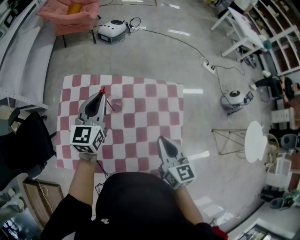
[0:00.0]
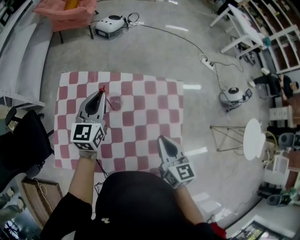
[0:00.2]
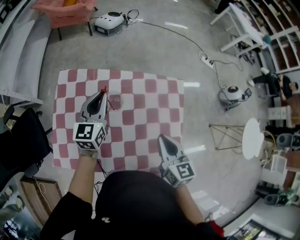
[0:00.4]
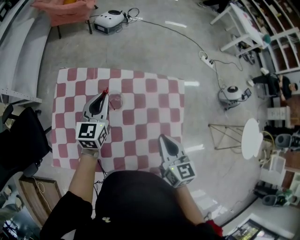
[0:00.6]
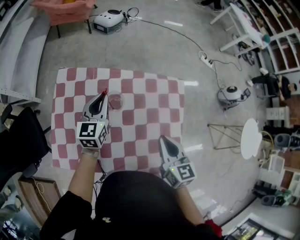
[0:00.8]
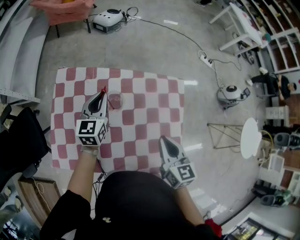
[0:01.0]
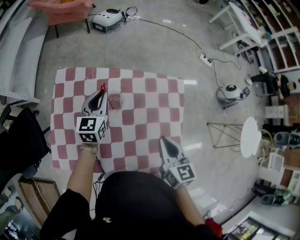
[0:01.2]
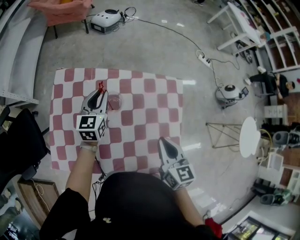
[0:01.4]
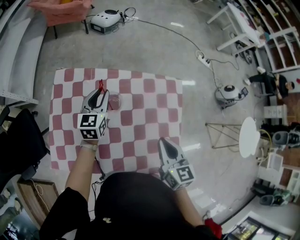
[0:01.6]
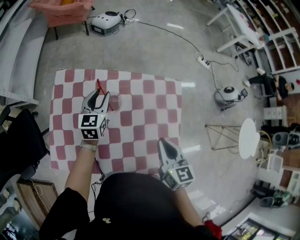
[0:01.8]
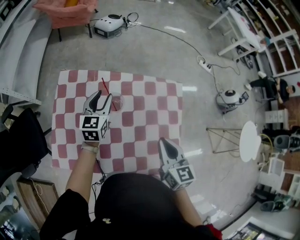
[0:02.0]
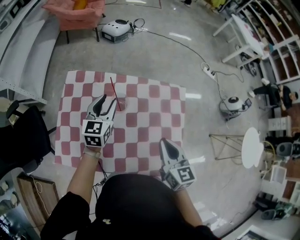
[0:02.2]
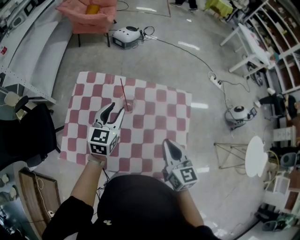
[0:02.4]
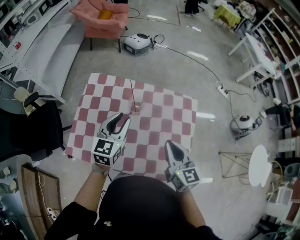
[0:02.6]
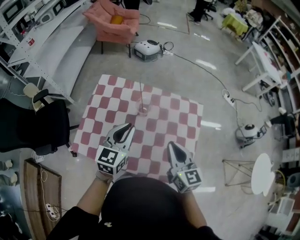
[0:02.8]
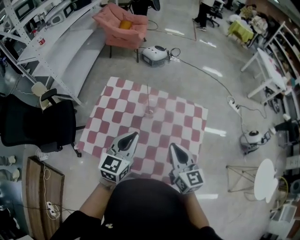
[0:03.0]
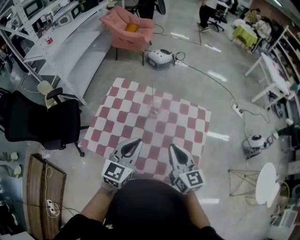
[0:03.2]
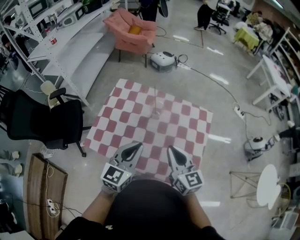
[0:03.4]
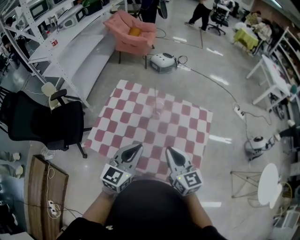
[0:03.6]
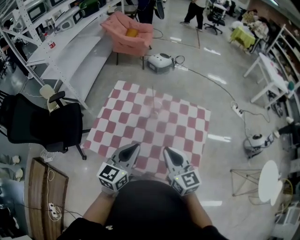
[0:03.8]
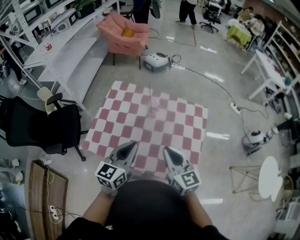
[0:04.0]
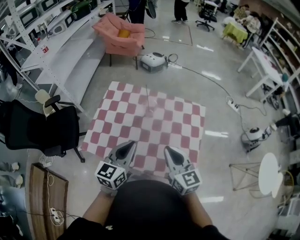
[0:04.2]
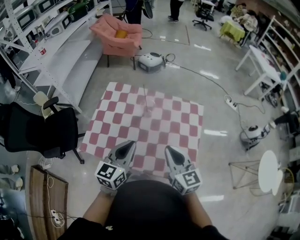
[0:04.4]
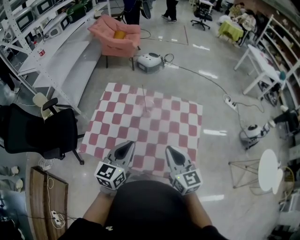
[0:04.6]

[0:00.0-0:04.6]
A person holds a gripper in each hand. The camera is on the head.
0.0 to 1.6 s: The left gripper goes some 15 cm downward.
1.6 to 3.0 s: The right gripper heads upward, backward and to the left, covering roughly 10 cm, and rotates about 30 degrees. Meanwhile the left gripper moves backward and upward, approximately 30 cm.
3.0 to 4.6 s: The two grippers go some 5 cm backward.

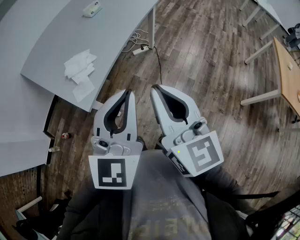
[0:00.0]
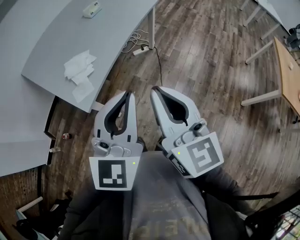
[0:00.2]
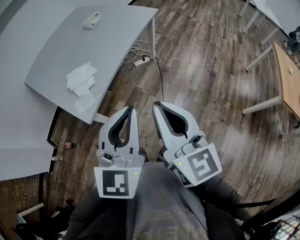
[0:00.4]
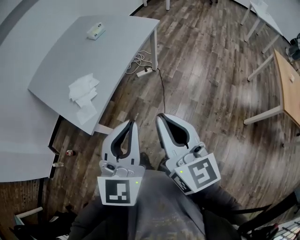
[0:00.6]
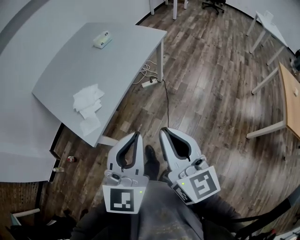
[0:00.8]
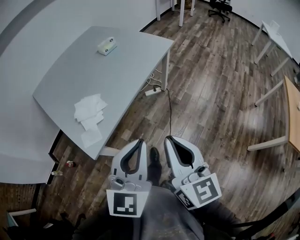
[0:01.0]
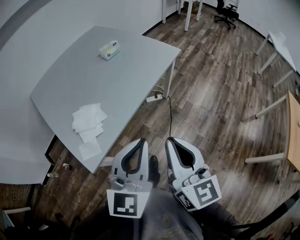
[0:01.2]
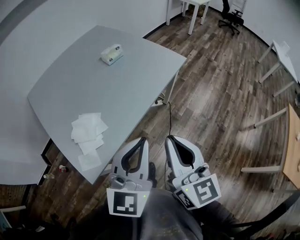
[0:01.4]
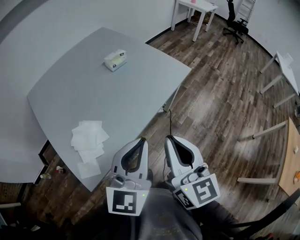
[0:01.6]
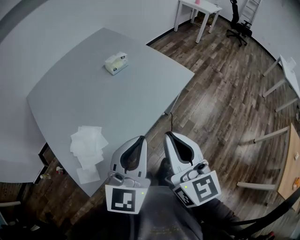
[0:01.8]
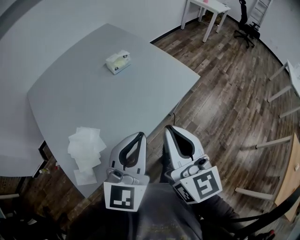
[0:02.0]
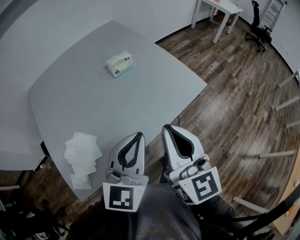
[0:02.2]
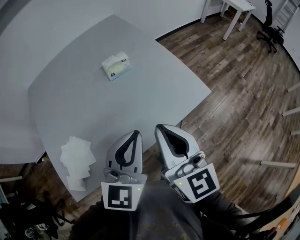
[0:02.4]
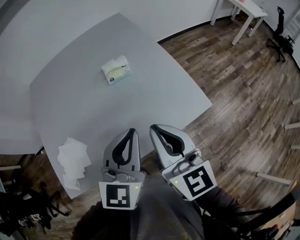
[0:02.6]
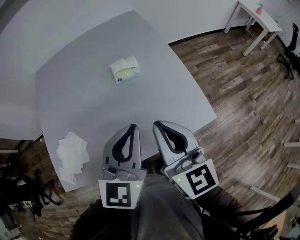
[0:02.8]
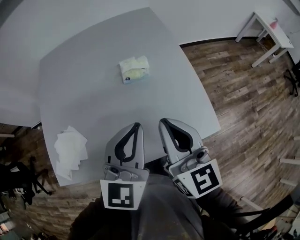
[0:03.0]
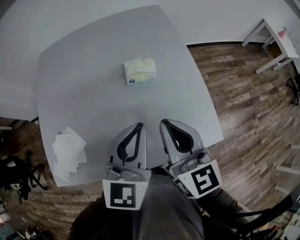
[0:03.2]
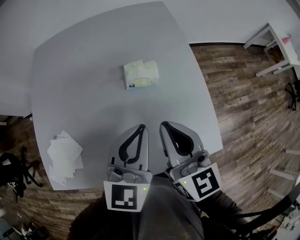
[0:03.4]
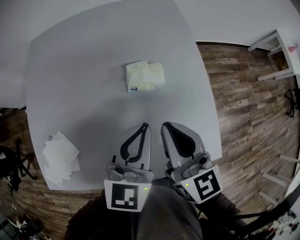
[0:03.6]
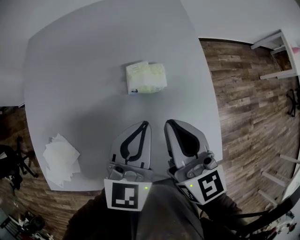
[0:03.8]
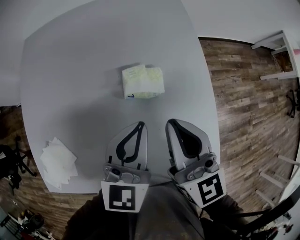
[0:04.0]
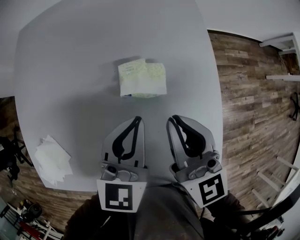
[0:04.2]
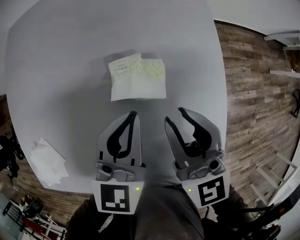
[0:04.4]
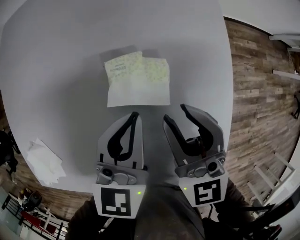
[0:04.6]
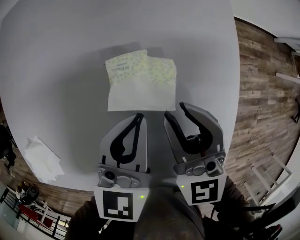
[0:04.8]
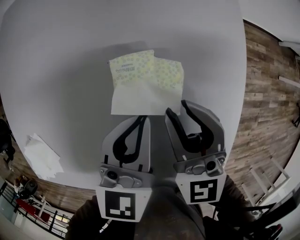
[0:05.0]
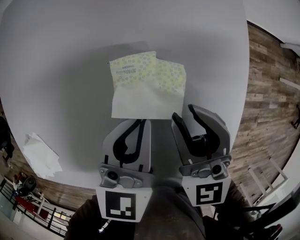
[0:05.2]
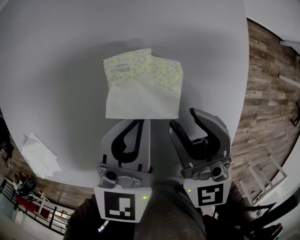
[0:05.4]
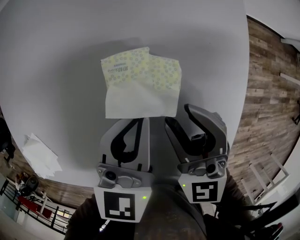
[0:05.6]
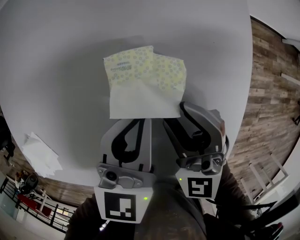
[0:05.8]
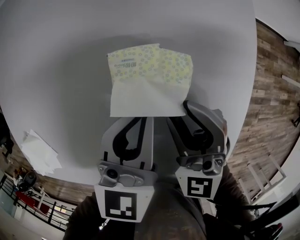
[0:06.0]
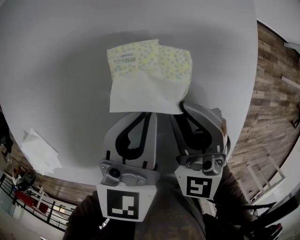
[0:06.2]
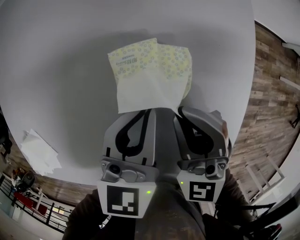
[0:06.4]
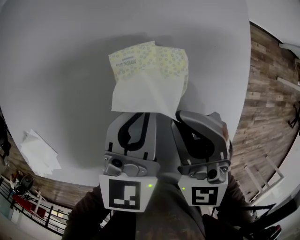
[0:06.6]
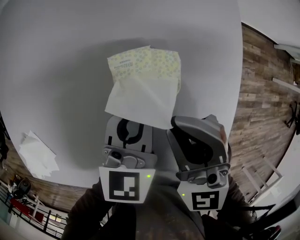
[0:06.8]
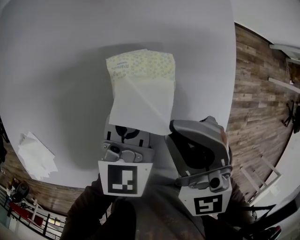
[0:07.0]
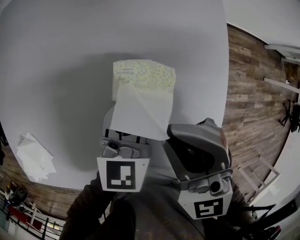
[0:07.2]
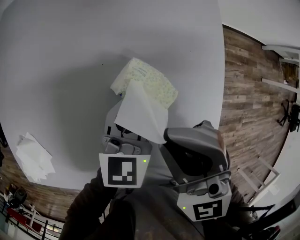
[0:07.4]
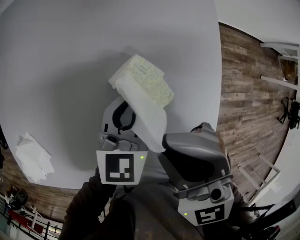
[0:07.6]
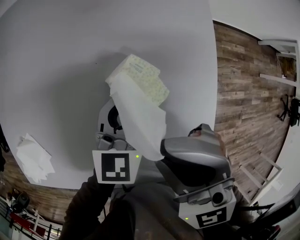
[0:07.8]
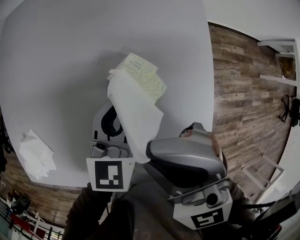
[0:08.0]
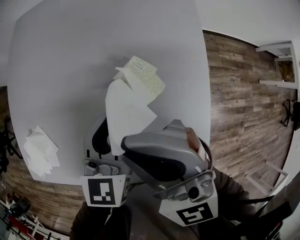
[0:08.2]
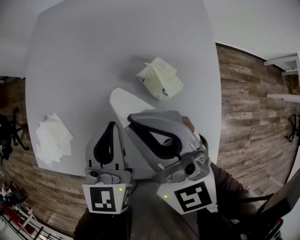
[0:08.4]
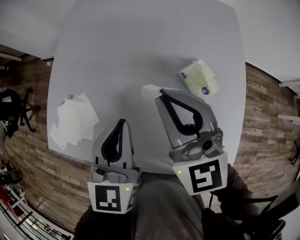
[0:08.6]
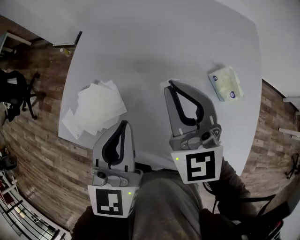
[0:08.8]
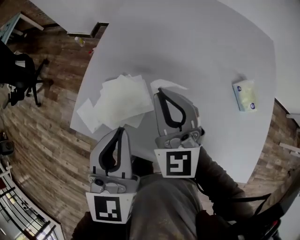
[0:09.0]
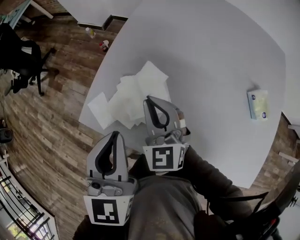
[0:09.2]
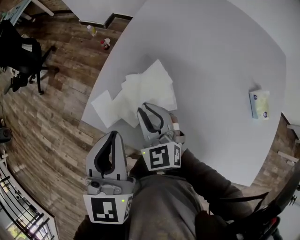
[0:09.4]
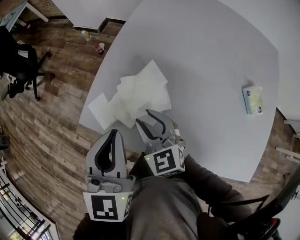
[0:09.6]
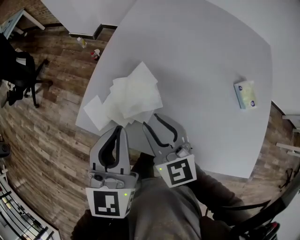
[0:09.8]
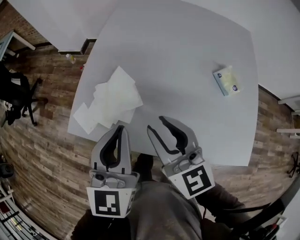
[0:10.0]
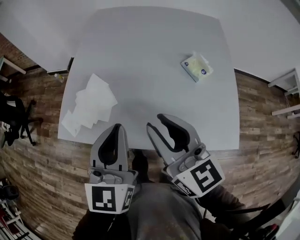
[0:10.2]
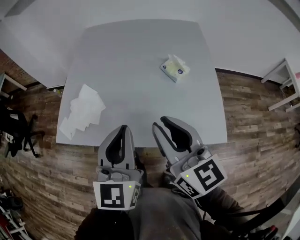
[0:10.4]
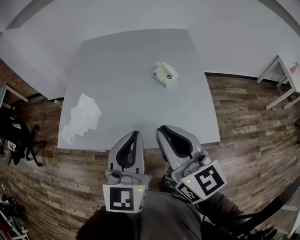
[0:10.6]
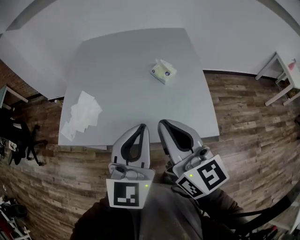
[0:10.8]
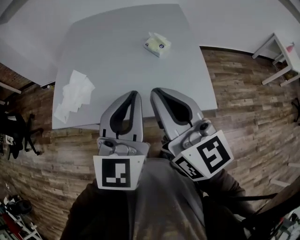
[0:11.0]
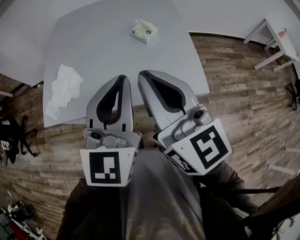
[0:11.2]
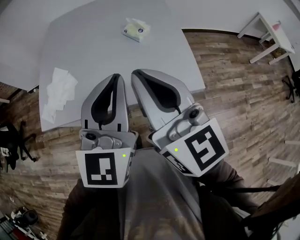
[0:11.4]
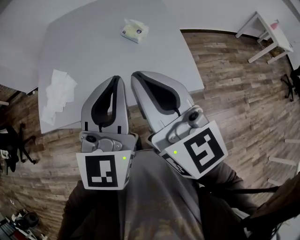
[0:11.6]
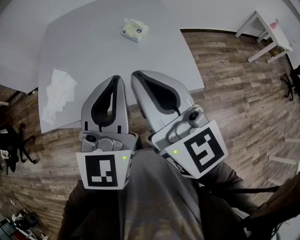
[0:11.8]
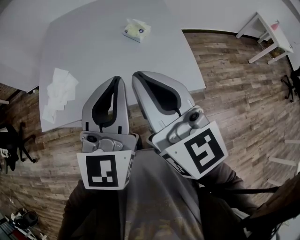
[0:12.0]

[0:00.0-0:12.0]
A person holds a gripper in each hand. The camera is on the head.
0.0 to 1.6 s: The two grippers go about 35 cm forward.
1.6 to 3.0 s: The left gripper shifts by approximately 35 cm, and swivels roughly 30 degrees. The right gripper moves approximately 40 cm, and swivels about 40 degrees.
3.0 to 4.4 s: Both grippers travel together forward and downward, some 30 cm. The left gripper turns by approximately 20 degrees.
4.4 to 6.0 s: The right gripper is displaced downward by approximately 10 cm, and turns by approximately 30 degrees, while the left gripper shifts about 5 cm downward.
6.0 to 7.6 s: The right gripper is displaced upward by about 15 cm, and closes.
7.6 to 9.0 s: Both grippers are carried to the left, approximately 50 cm. The left gripper rotates some 30 degrees.
9.0 to 10.4 s: Both grippers move backward, to the right and upward, approximately 30 cm. The right gripper turns by about 30 degrees, and opens its fingers.
10.4 to 12.0 s: The left gripper goes about 15 cm to the right, backward and upward; the right gripper heads backward and upward, covering about 10 cm, and closes its fingers.

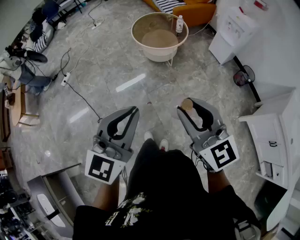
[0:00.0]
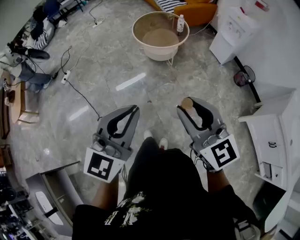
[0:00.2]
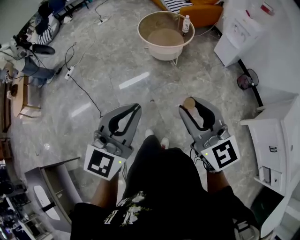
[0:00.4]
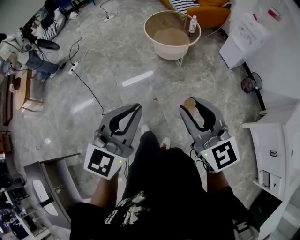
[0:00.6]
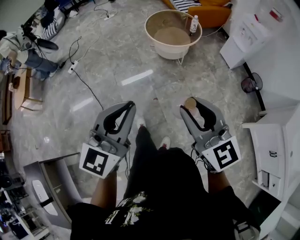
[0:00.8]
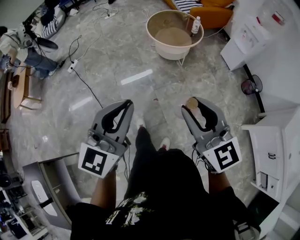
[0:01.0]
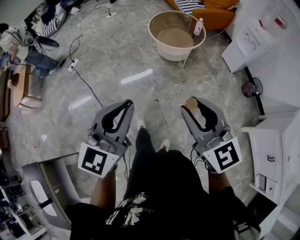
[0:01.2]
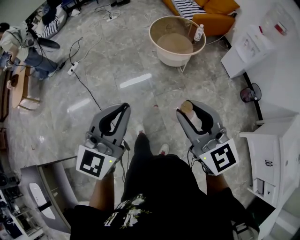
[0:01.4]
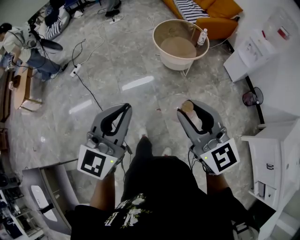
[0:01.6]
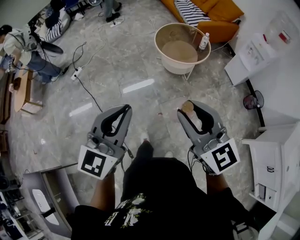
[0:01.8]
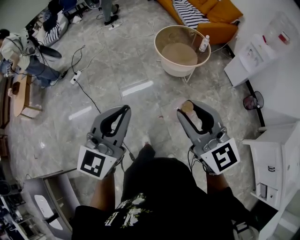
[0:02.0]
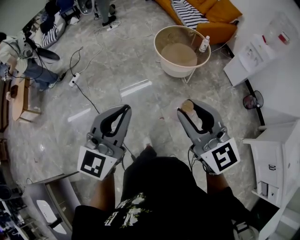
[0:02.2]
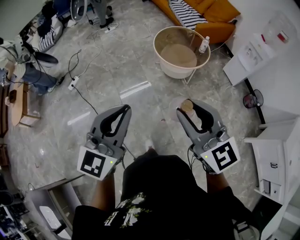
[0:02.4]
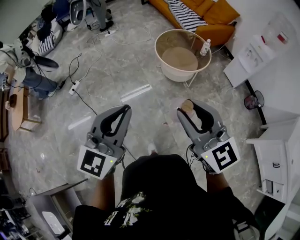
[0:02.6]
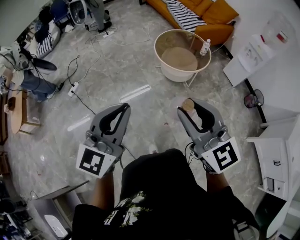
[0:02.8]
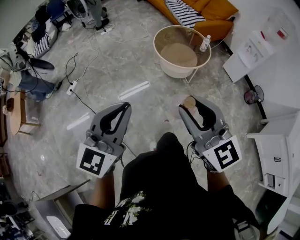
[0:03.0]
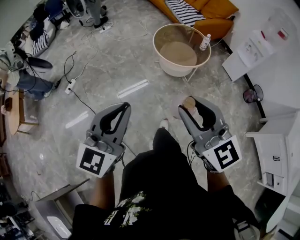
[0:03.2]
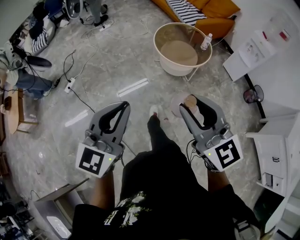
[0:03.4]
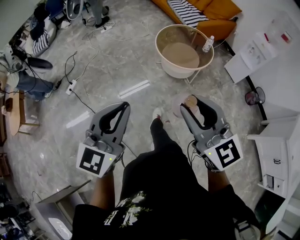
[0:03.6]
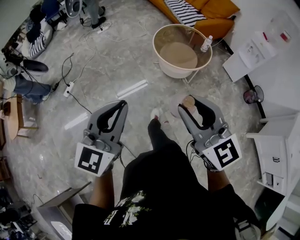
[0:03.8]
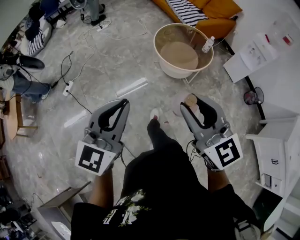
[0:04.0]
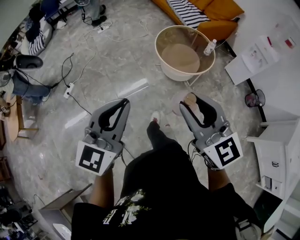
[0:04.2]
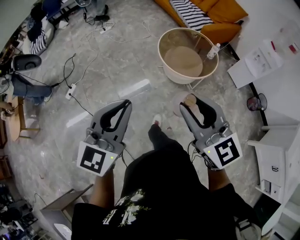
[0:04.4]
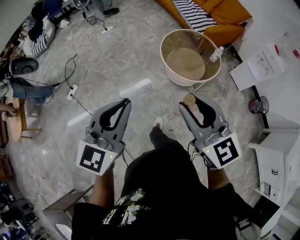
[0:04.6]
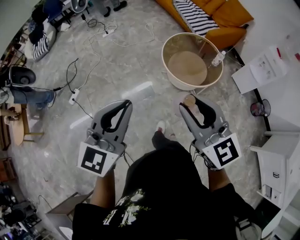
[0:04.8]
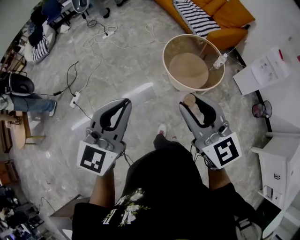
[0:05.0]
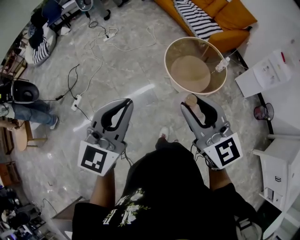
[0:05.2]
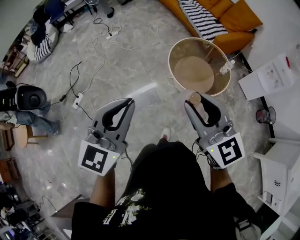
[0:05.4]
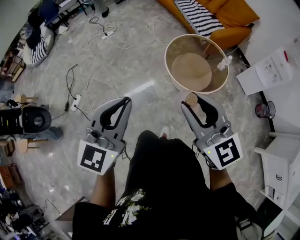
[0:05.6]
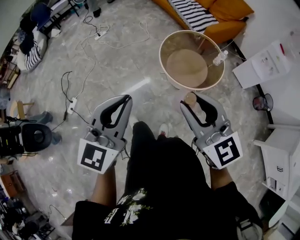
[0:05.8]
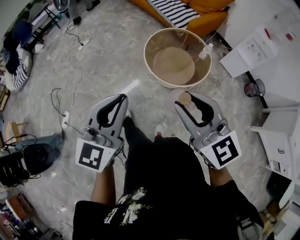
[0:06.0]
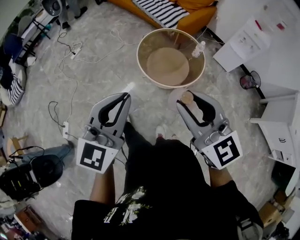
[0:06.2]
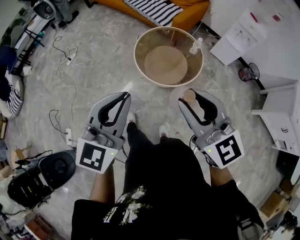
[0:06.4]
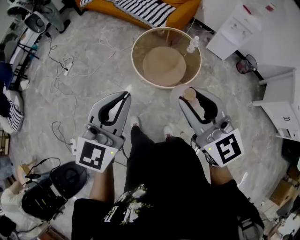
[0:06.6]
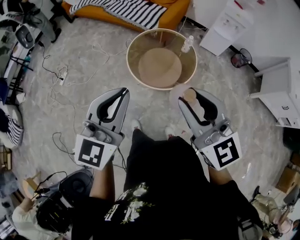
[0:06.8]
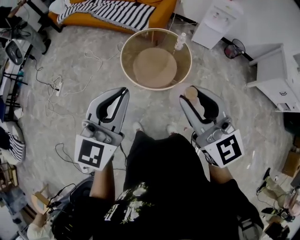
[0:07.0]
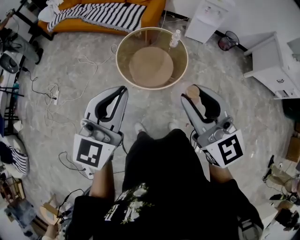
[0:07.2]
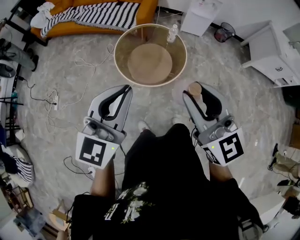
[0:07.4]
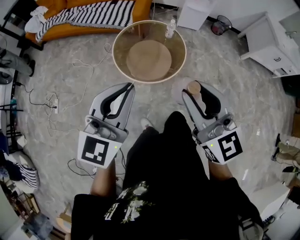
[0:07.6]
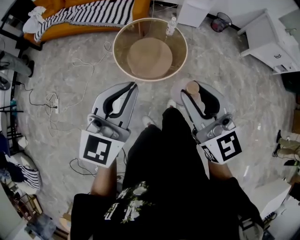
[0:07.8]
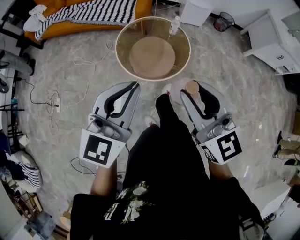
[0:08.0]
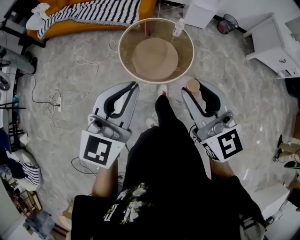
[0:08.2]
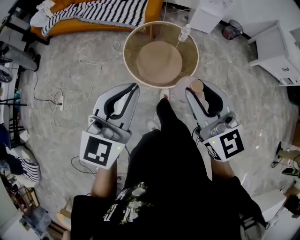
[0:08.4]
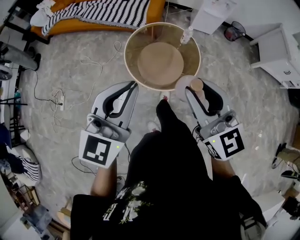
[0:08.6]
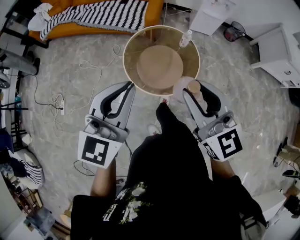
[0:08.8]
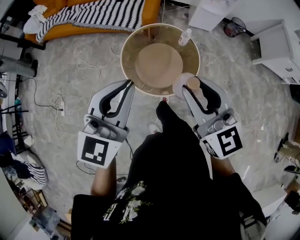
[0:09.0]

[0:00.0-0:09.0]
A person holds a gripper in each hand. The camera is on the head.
0.0 to 1.6 s: The grippers both shift to the left and forward by roughly 15 cm.
1.6 to 3.0 s: The right gripper moves to the left and forward, some 20 cm; the left gripper travels forward and to the left by some 25 cm.
3.0 to 4.4 s: Both grippers move forward, some 20 cm.
4.4 to 6.0 s: Both grippers travel together forward, some 25 cm.
6.0 to 7.6 s: The right gripper changes place by about 20 cm, and changes its angle by some 50 degrees. The left gripper shifts by some 25 cm, and turns by about 40 degrees.
7.6 to 9.0 s: The two grippers go some 20 cm forward.
